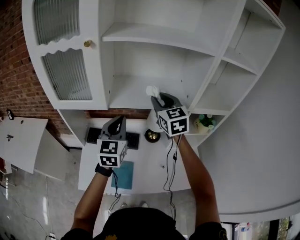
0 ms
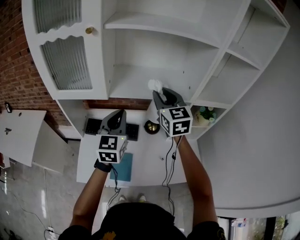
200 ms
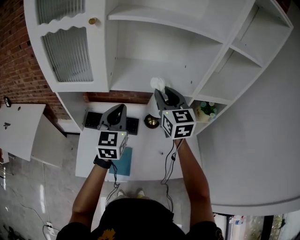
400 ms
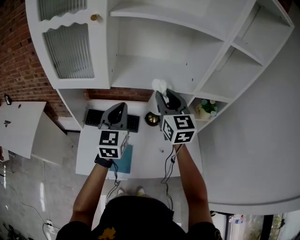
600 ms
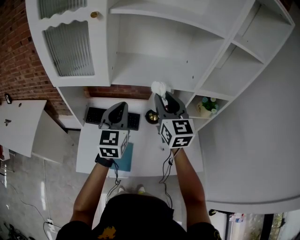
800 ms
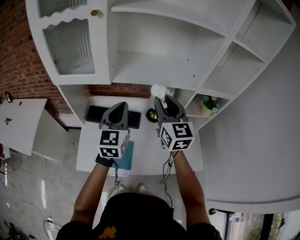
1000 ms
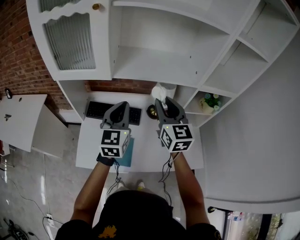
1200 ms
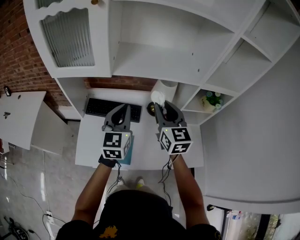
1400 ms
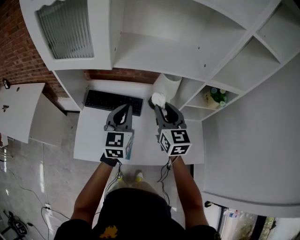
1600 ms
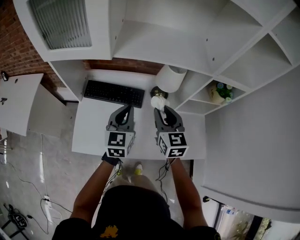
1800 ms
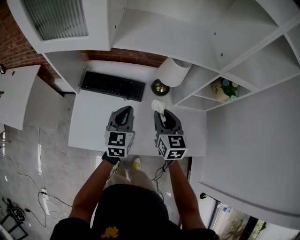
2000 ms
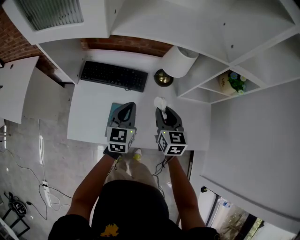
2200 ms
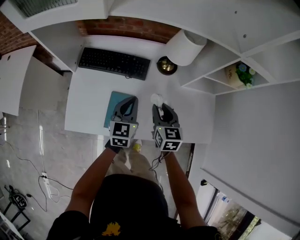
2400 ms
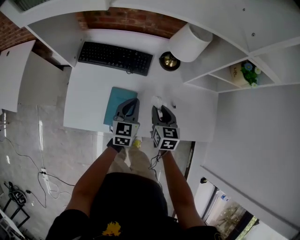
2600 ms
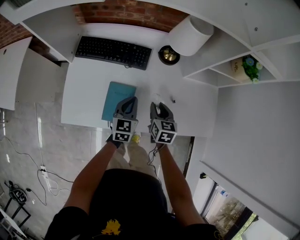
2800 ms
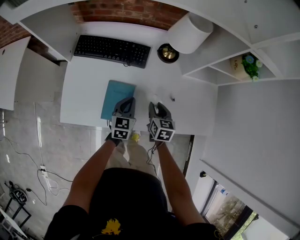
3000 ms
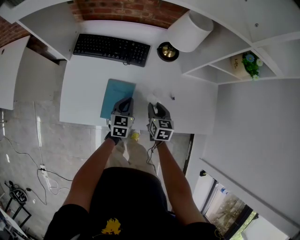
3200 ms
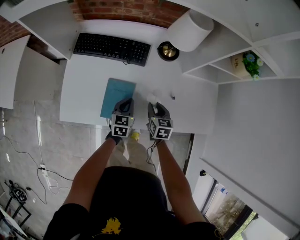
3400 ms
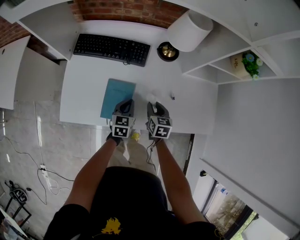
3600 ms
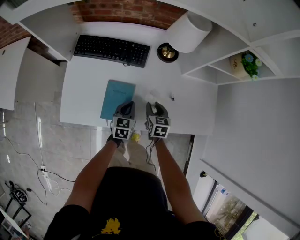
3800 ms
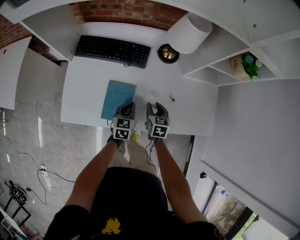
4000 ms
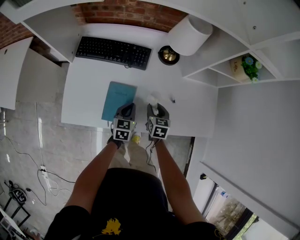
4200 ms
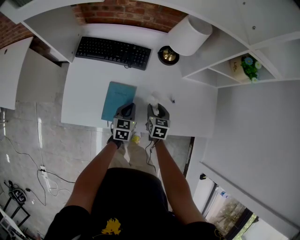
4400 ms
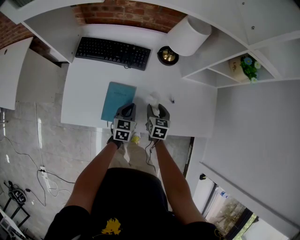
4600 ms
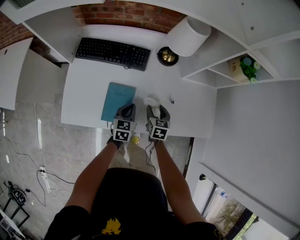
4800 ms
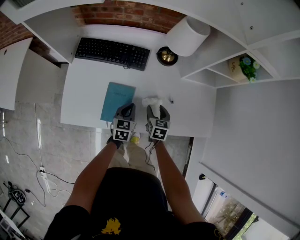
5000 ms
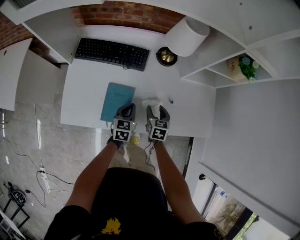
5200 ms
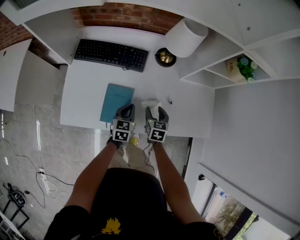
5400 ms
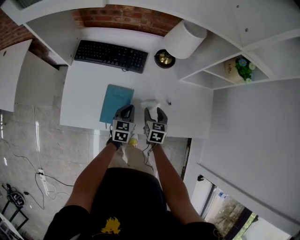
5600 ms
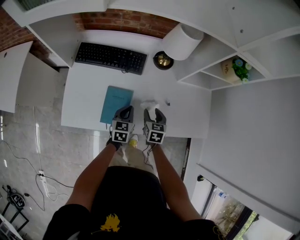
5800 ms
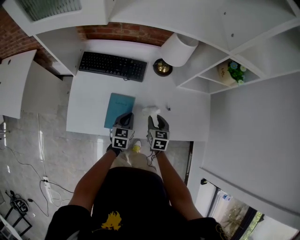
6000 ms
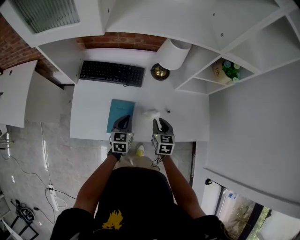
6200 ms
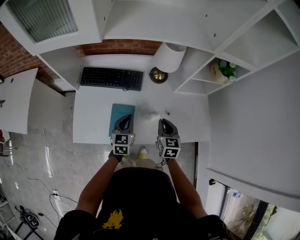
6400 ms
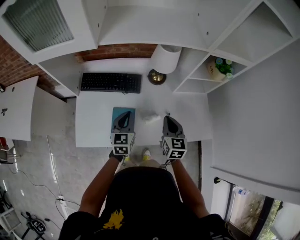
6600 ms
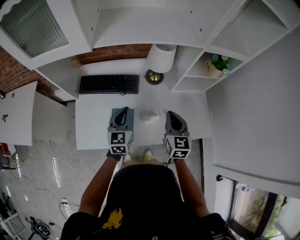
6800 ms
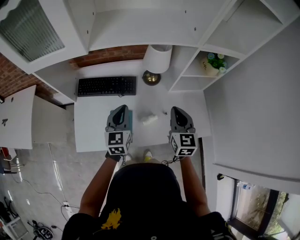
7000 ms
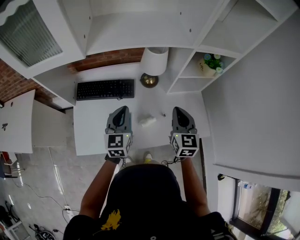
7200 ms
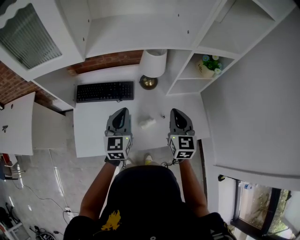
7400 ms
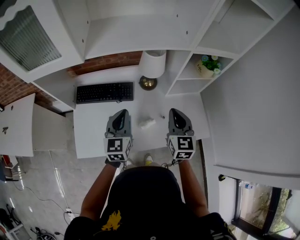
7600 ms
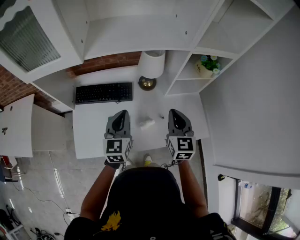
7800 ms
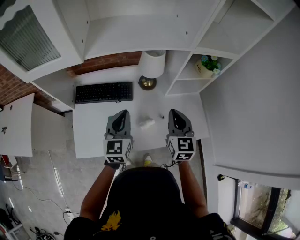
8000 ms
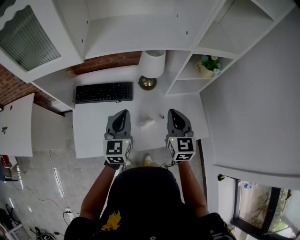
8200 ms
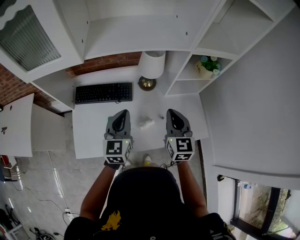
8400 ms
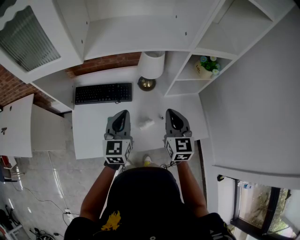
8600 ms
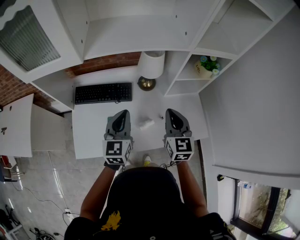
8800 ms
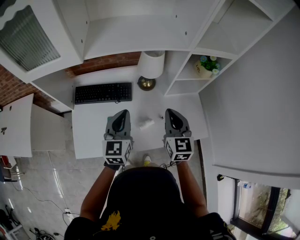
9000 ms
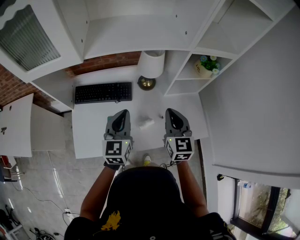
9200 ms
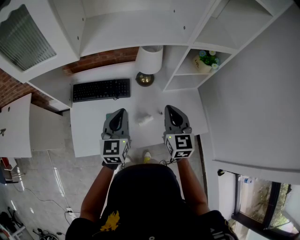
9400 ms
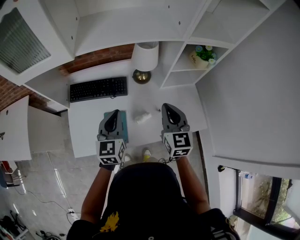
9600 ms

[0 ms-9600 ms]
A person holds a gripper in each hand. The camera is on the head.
0 ms to 1600 ms: The left gripper travels downward by some 10 cm. Meanwhile the right gripper moves downward and backward, roughly 20 cm.
1600 ms to 3200 ms: The grippers both shift downward by about 40 cm. The left gripper turns by roughly 30 degrees. Meanwhile the right gripper swivels approximately 30 degrees.
3200 ms to 4800 ms: The grippers stay close to where they were, moving slightly.
4800 ms to 6400 ms: The grippers both shift upward by some 15 cm. The right gripper closes.
6400 ms to 8000 ms: The grippers both shift upward by approximately 15 cm.
8000 ms to 9600 ms: The grippers move only a little.

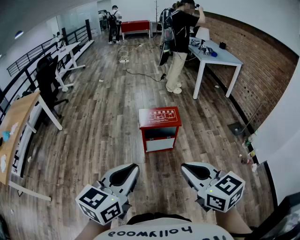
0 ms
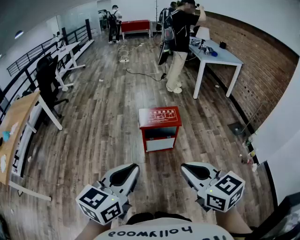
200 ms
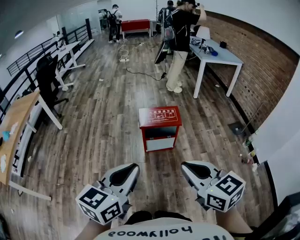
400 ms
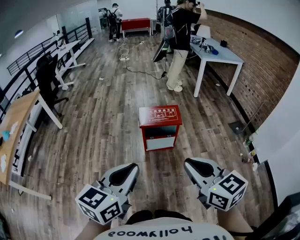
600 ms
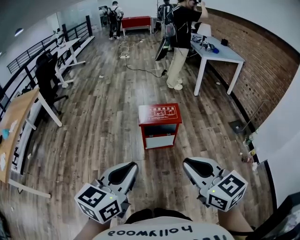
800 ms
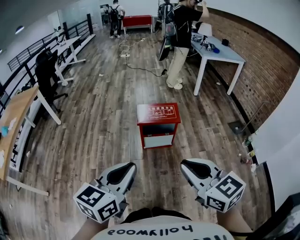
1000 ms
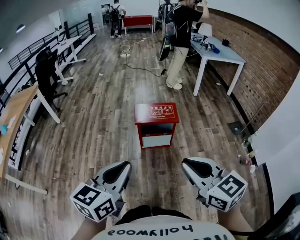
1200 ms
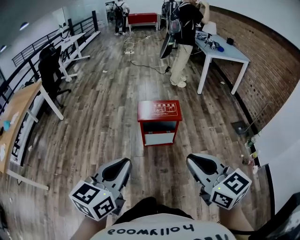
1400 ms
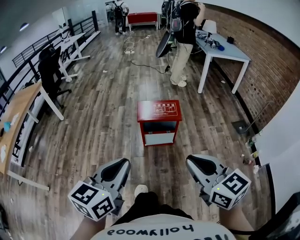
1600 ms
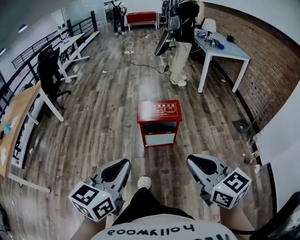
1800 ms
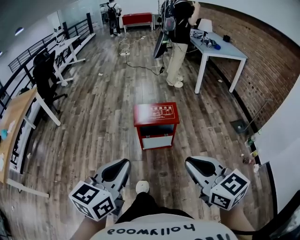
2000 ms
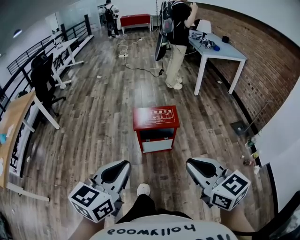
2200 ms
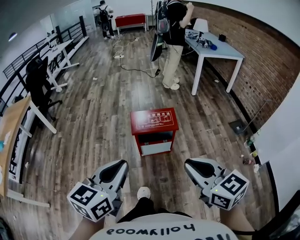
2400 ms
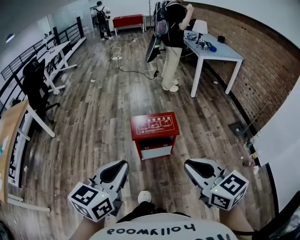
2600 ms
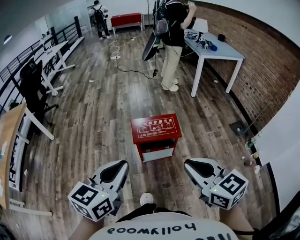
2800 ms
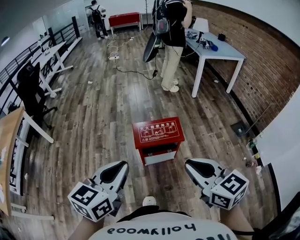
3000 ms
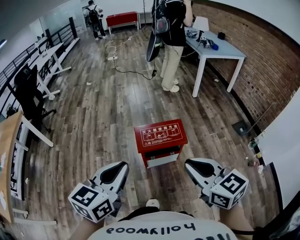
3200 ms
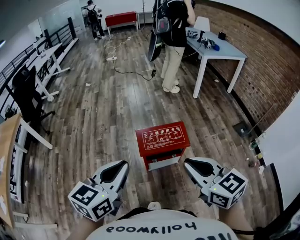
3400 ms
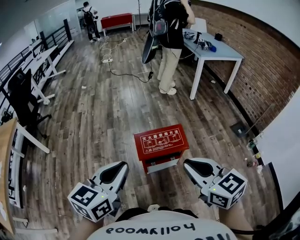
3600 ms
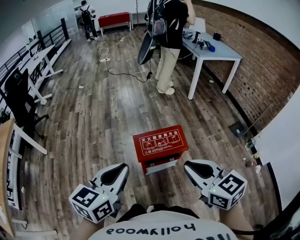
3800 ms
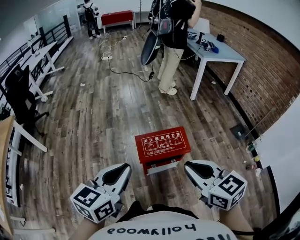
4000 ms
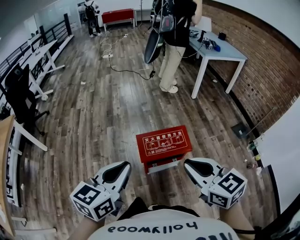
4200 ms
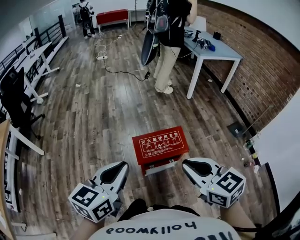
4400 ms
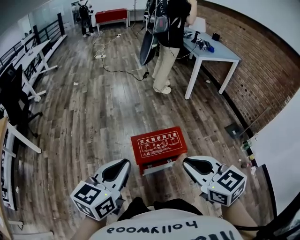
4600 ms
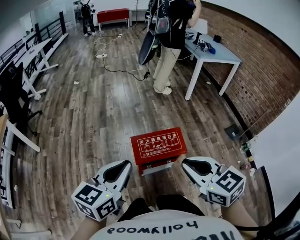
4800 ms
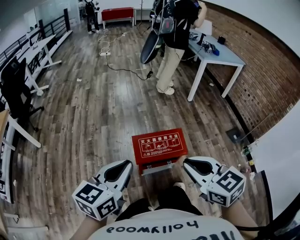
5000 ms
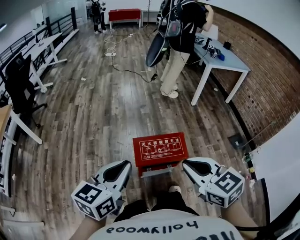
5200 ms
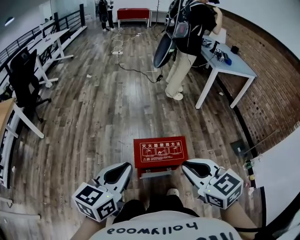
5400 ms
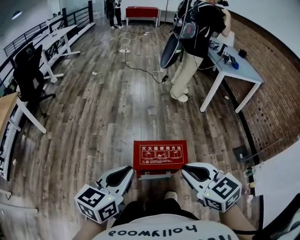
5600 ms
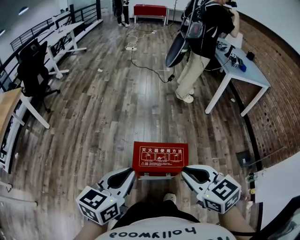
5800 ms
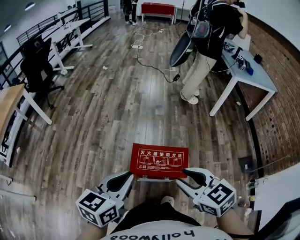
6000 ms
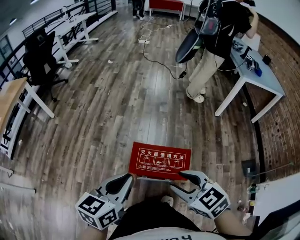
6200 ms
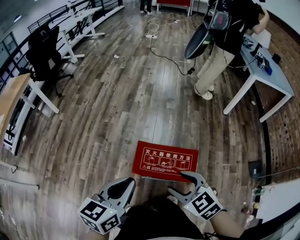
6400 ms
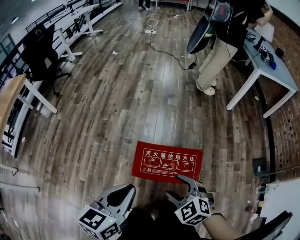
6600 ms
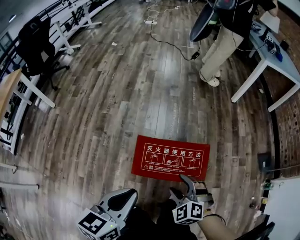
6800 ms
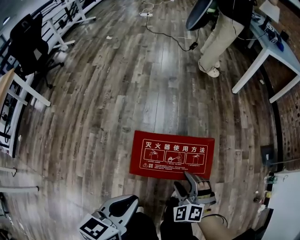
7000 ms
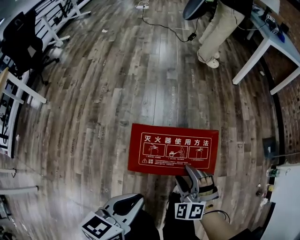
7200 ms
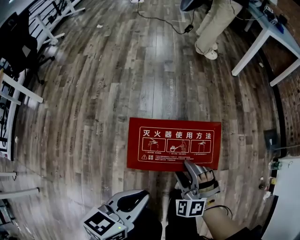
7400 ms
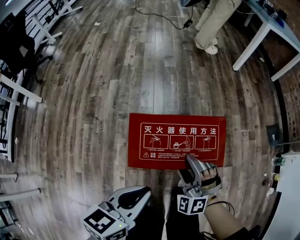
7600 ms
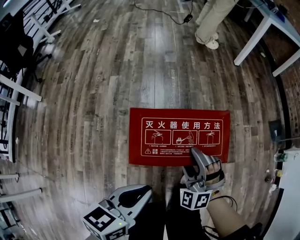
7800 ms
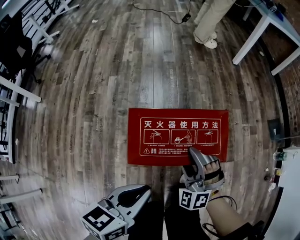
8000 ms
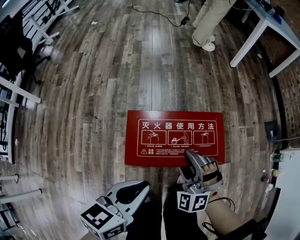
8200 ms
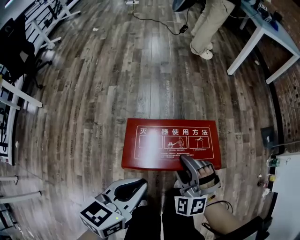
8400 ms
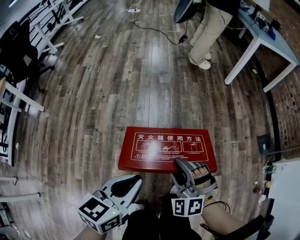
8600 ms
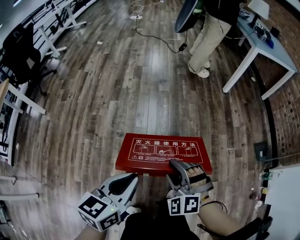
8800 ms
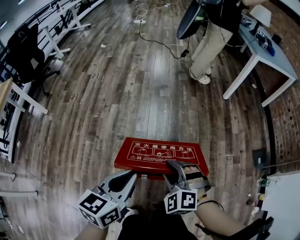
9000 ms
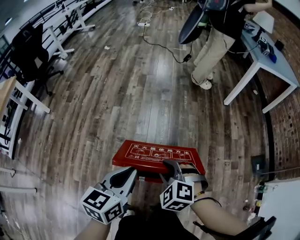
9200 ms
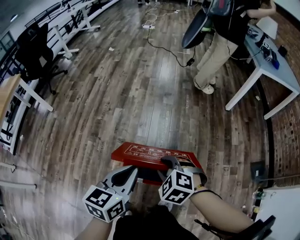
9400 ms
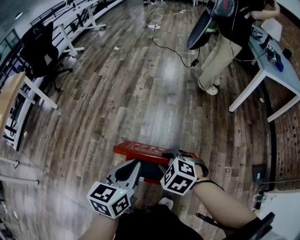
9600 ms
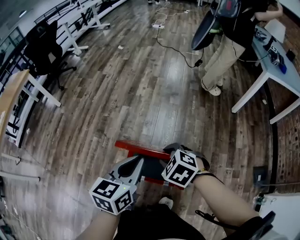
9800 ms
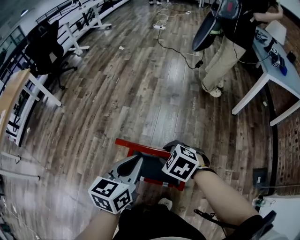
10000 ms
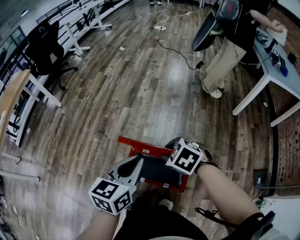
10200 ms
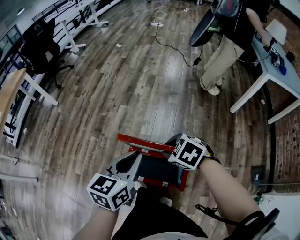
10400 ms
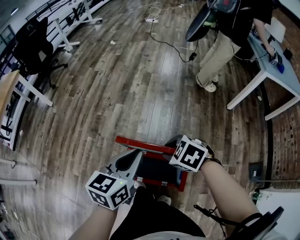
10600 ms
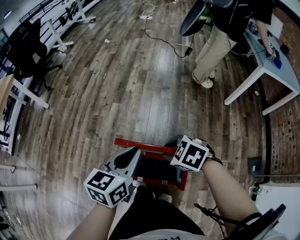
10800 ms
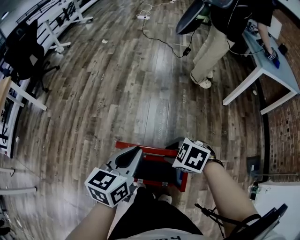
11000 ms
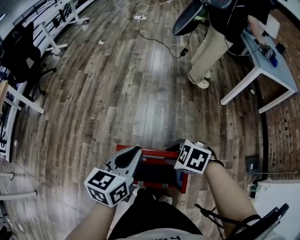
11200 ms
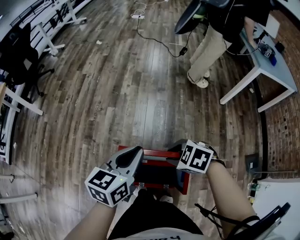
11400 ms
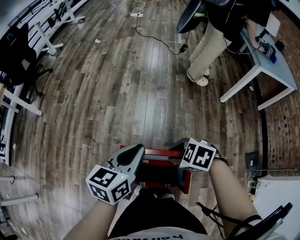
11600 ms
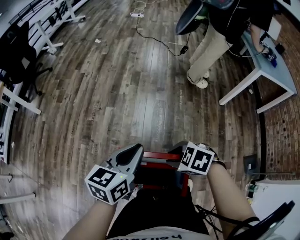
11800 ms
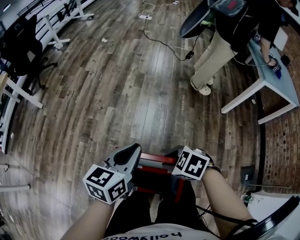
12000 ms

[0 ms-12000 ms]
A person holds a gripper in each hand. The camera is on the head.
0 ms to 1600 ms: The right gripper is displaced to the right by roughly 5 cm.
1600 ms to 3000 ms: Both grippers move forward, some 20 cm.
3000 ms to 4400 ms: The left gripper travels forward by about 15 cm; the right gripper shifts about 15 cm forward and to the left.
4400 ms to 6000 ms: The right gripper shifts approximately 15 cm forward, to the right and downward, and turns by roughly 20 degrees. The left gripper is displaced to the right and forward by approximately 10 cm.
6000 ms to 7600 ms: The two grippers go about 30 cm downward. The right gripper twists approximately 50 degrees counterclockwise, seen from behind, and opens up. Meanwhile the left gripper rotates some 20 degrees.
7600 ms to 9000 ms: The two grippers go roughly 15 cm upward and forward. The right gripper closes.
9000 ms to 10400 ms: The left gripper changes place by roughly 10 cm. Meanwhile the right gripper ends up roughly 10 cm from where it was, and changes its angle by some 40 degrees.
10400 ms to 12000 ms: The left gripper ends up roughly 15 cm from where it was.

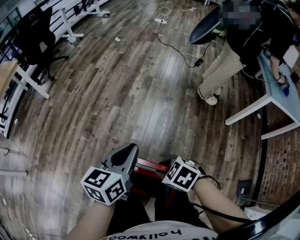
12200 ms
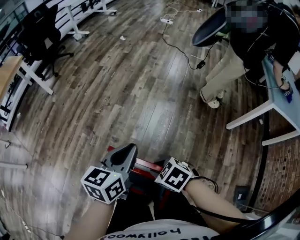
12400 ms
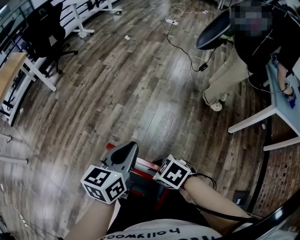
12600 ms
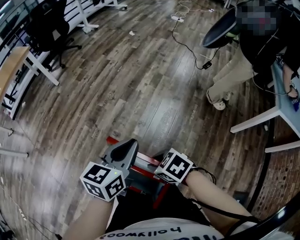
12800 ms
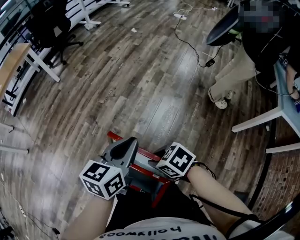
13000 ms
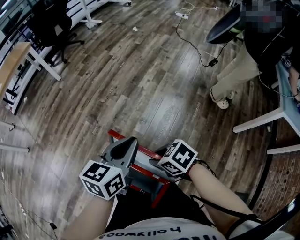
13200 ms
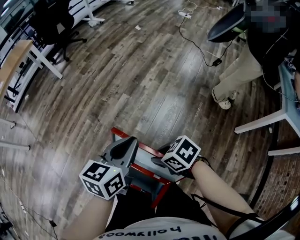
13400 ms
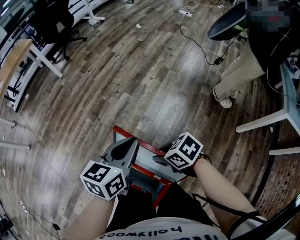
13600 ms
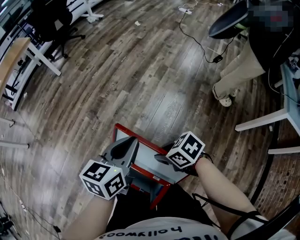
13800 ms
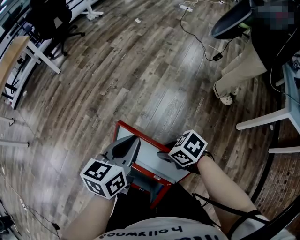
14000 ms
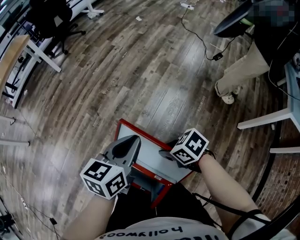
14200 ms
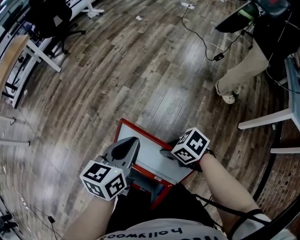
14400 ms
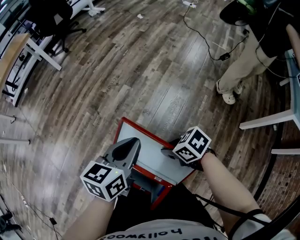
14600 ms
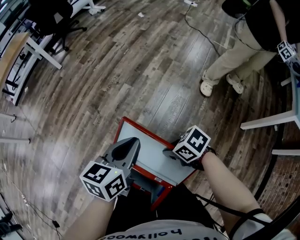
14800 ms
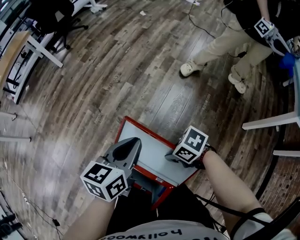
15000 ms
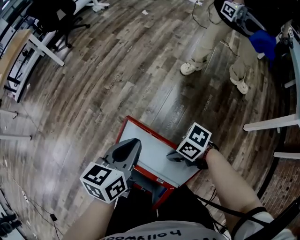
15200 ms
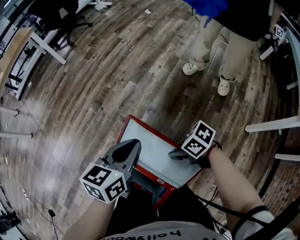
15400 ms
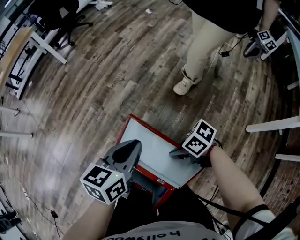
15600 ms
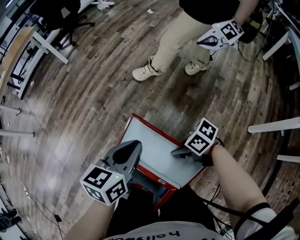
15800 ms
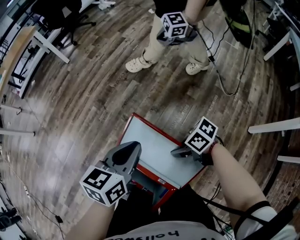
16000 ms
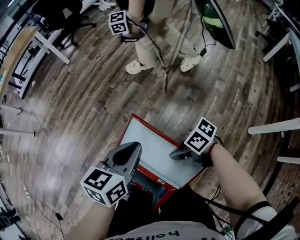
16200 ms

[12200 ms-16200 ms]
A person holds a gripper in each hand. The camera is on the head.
12200 ms to 13600 ms: The right gripper changes place by approximately 5 cm, and swivels approximately 20 degrees.
13600 ms to 14800 ms: The right gripper heads downward, covering approximately 5 cm.
14800 ms to 16200 ms: The right gripper turns by about 20 degrees.
